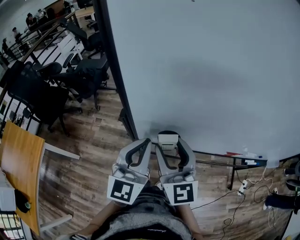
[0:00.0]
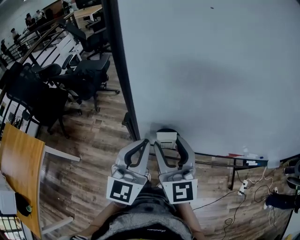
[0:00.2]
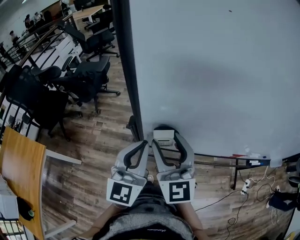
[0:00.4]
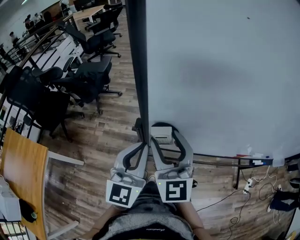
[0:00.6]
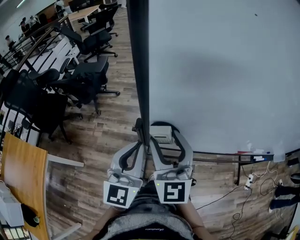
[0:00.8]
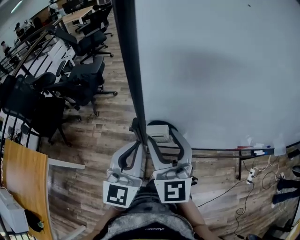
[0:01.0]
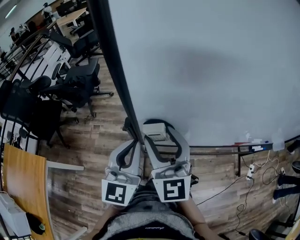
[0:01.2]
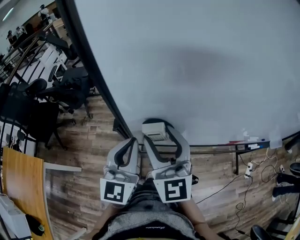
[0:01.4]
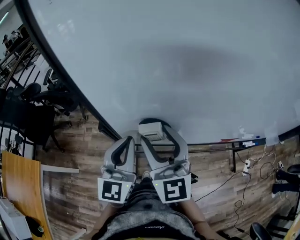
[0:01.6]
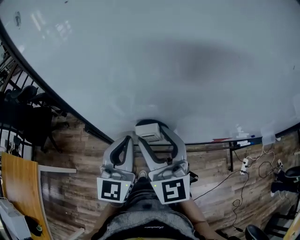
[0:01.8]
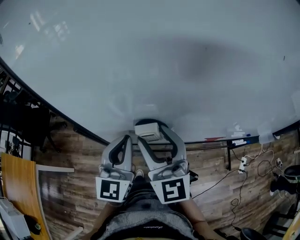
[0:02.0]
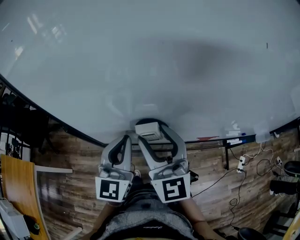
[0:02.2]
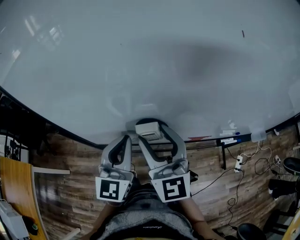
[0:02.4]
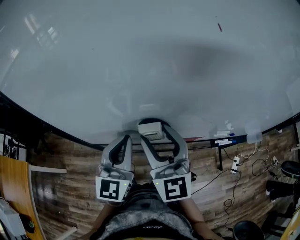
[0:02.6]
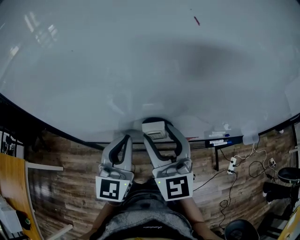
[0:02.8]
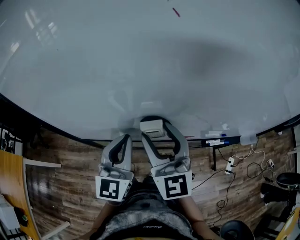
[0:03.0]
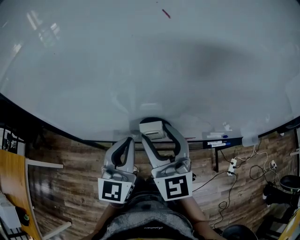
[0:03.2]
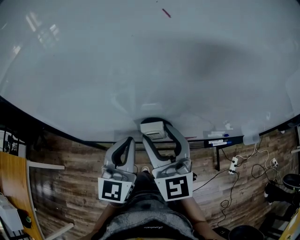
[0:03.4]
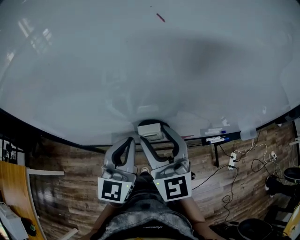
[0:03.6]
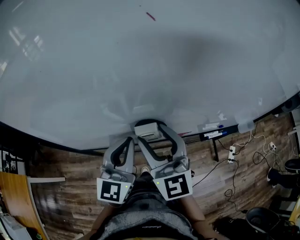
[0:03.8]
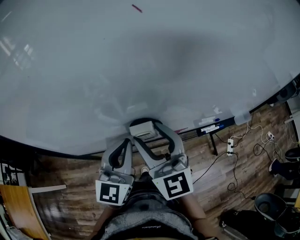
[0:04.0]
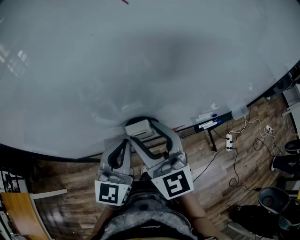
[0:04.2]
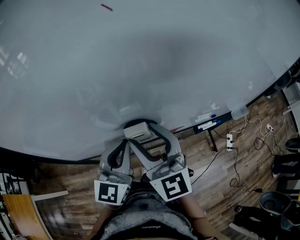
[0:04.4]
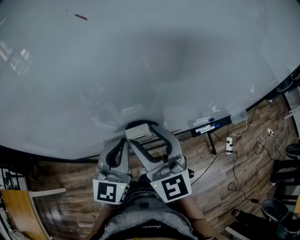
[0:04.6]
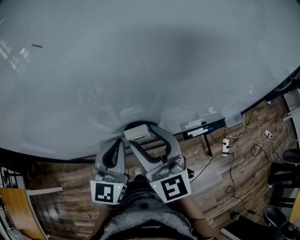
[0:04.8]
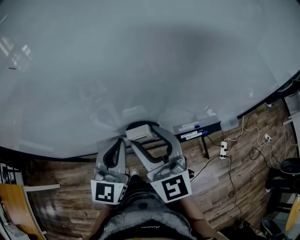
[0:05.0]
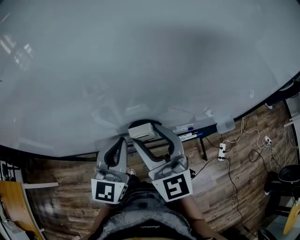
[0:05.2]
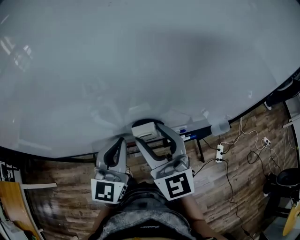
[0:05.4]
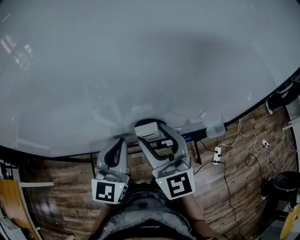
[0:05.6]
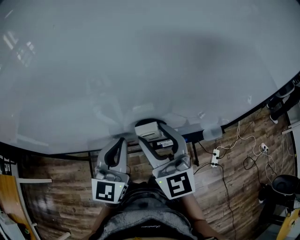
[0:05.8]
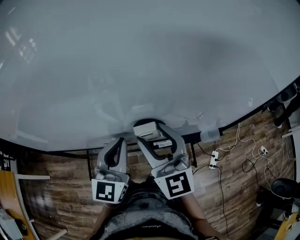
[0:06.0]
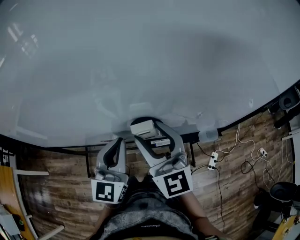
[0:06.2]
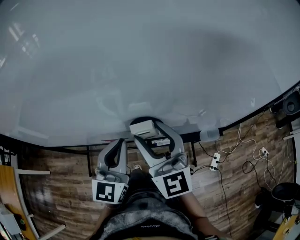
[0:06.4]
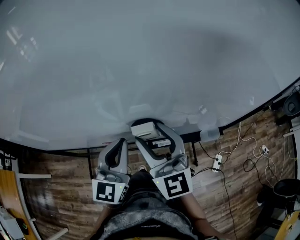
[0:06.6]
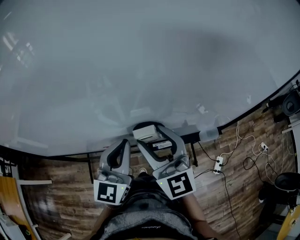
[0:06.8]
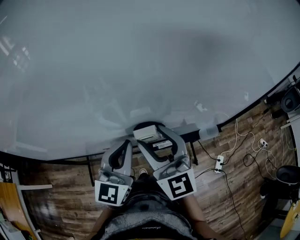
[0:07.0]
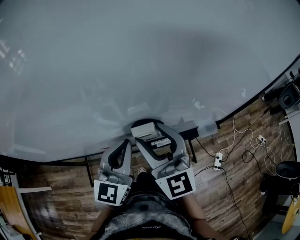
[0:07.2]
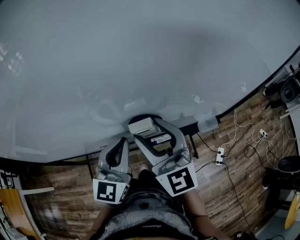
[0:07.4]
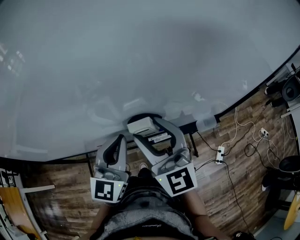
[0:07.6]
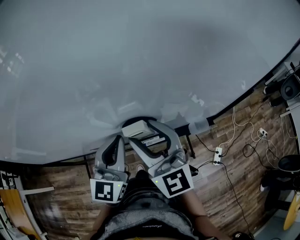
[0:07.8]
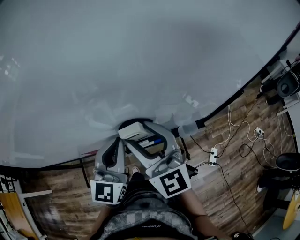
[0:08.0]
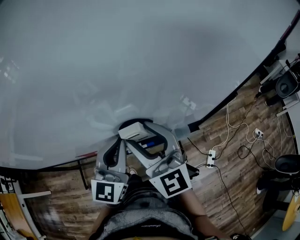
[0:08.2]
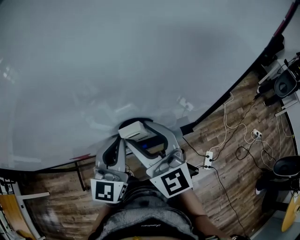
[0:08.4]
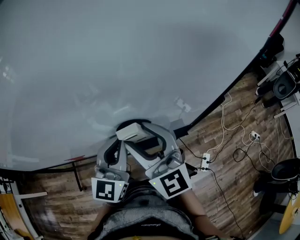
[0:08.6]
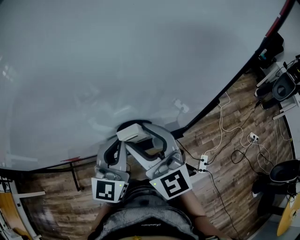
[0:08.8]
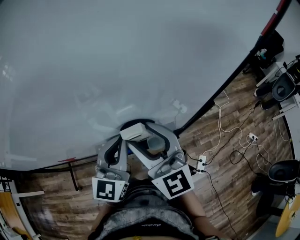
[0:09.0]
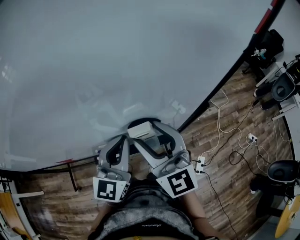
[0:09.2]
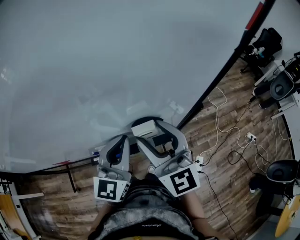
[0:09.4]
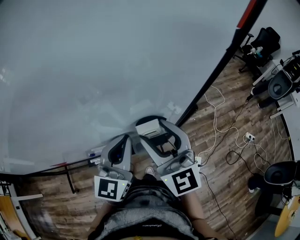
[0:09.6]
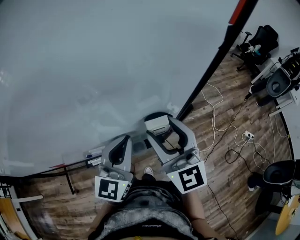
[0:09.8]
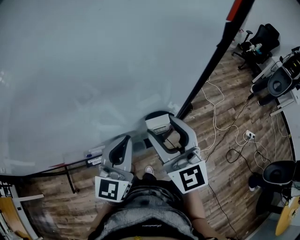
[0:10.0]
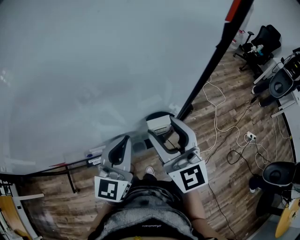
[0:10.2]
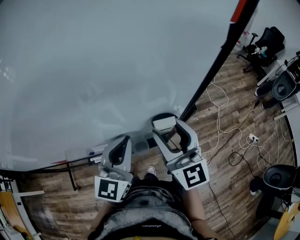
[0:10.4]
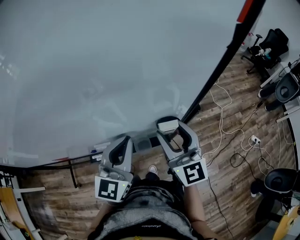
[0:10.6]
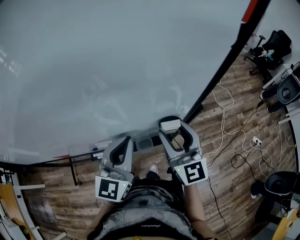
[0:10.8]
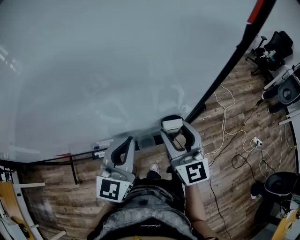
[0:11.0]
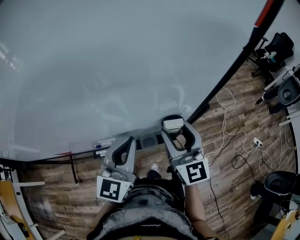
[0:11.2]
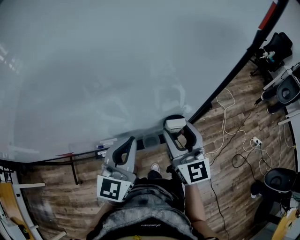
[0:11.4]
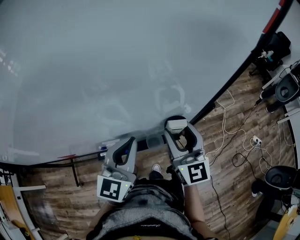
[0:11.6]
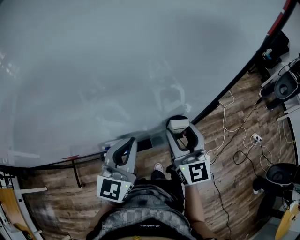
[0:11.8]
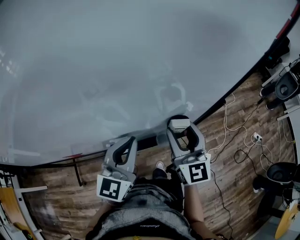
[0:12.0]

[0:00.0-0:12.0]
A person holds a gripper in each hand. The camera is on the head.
0:00.0 to 0:01.6: The left gripper moves some 10 cm to the left and comes back. The right gripper reaches approximately 10 cm to the left, then returns.
0:01.6 to 0:03.0: The grippers both shift to the right by roughly 30 cm.
0:03.0 to 0:04.4: There are only small adjustments of the grippers.
0:04.4 to 0:06.0: The two grippers go some 30 cm to the right.
0:06.0 to 0:07.6: The grippers make only small movements.
0:07.6 to 0:09.0: The grippers both shift to the right by some 30 cm.
0:09.0 to 0:10.4: The left gripper shifts about 10 cm to the right, while the right gripper heads to the right, covering roughly 15 cm.
0:10.4 to 0:12.0: The right gripper travels to the left by about 5 cm; the left gripper shifts approximately 10 cm to the left.

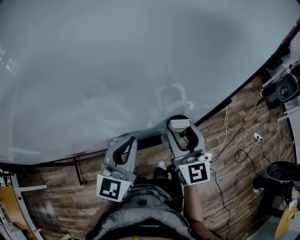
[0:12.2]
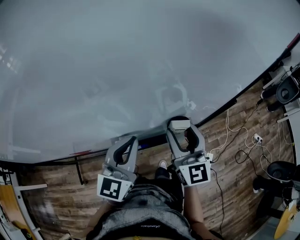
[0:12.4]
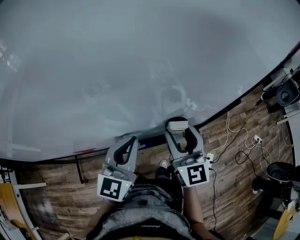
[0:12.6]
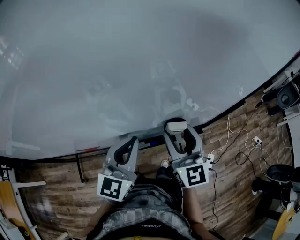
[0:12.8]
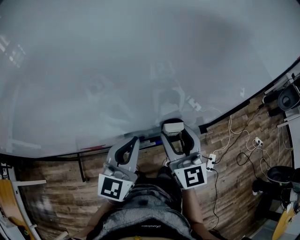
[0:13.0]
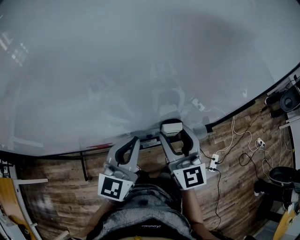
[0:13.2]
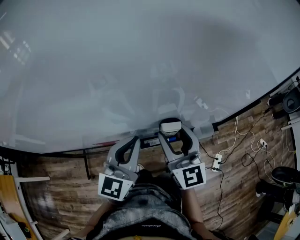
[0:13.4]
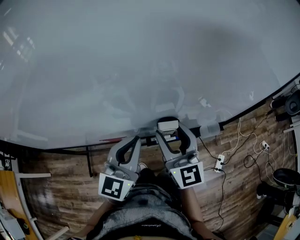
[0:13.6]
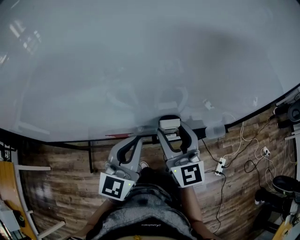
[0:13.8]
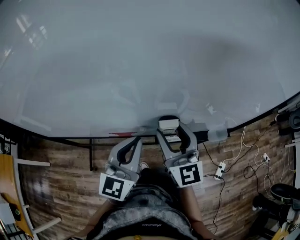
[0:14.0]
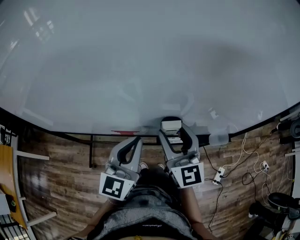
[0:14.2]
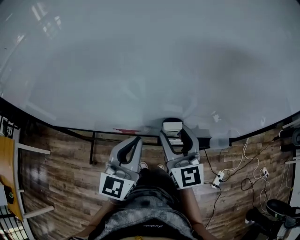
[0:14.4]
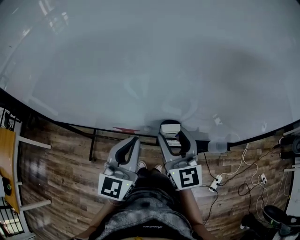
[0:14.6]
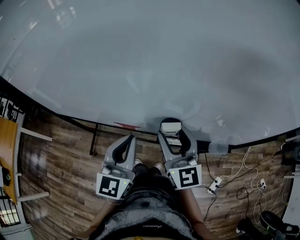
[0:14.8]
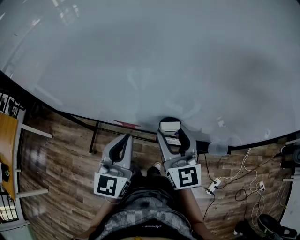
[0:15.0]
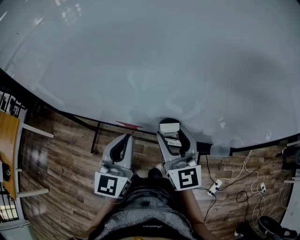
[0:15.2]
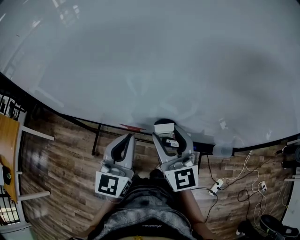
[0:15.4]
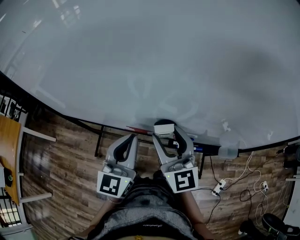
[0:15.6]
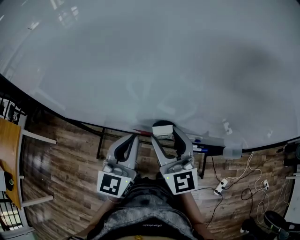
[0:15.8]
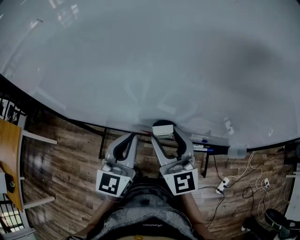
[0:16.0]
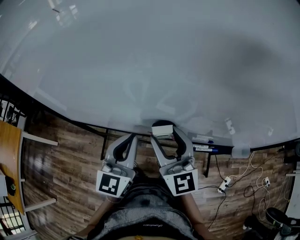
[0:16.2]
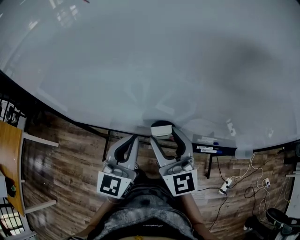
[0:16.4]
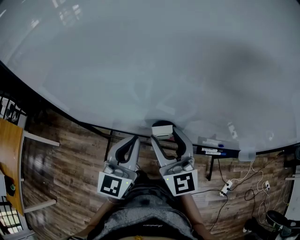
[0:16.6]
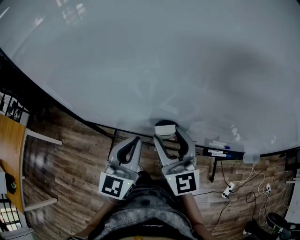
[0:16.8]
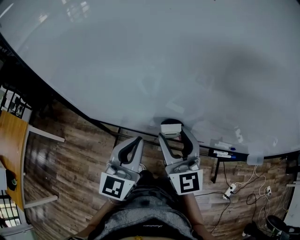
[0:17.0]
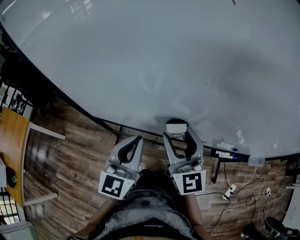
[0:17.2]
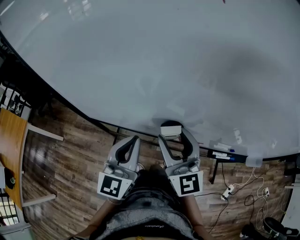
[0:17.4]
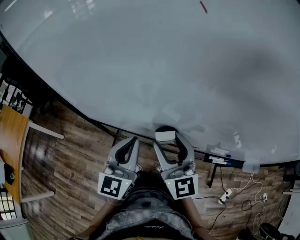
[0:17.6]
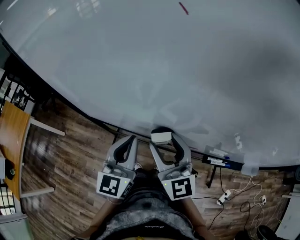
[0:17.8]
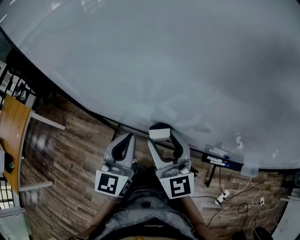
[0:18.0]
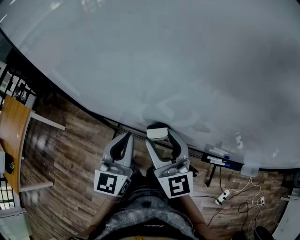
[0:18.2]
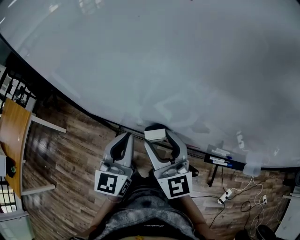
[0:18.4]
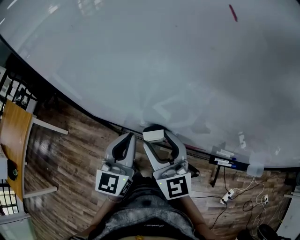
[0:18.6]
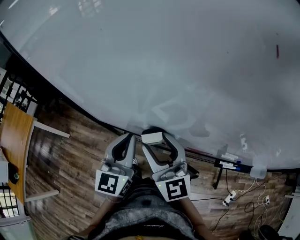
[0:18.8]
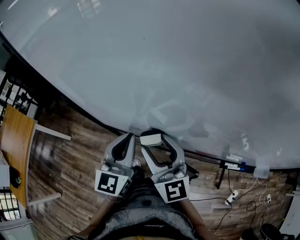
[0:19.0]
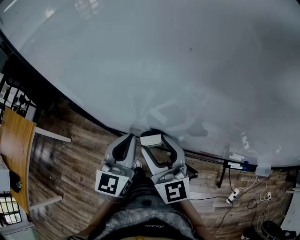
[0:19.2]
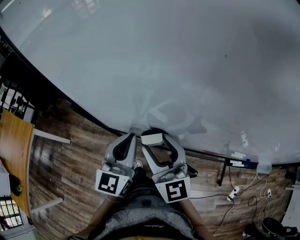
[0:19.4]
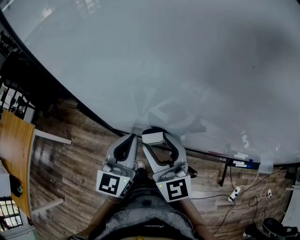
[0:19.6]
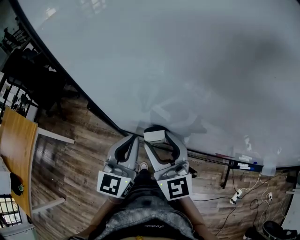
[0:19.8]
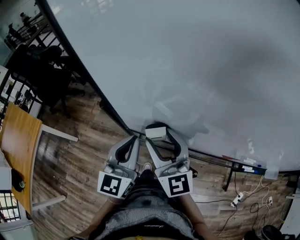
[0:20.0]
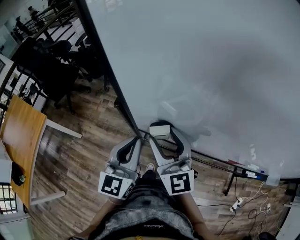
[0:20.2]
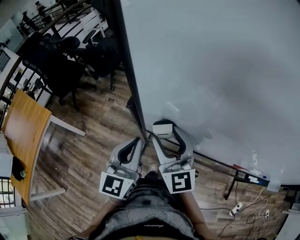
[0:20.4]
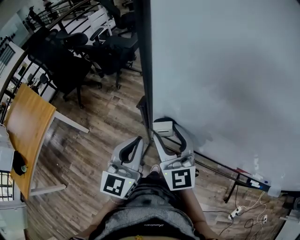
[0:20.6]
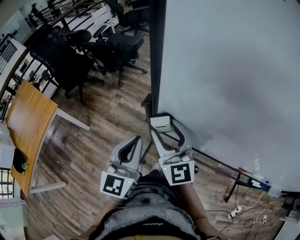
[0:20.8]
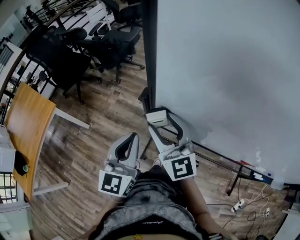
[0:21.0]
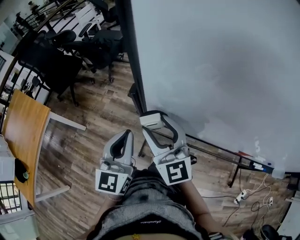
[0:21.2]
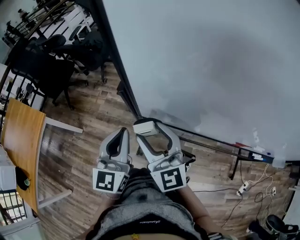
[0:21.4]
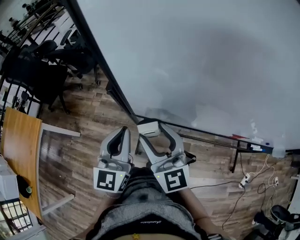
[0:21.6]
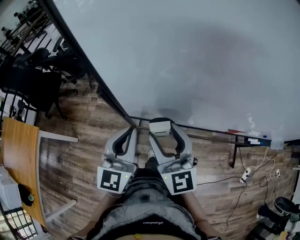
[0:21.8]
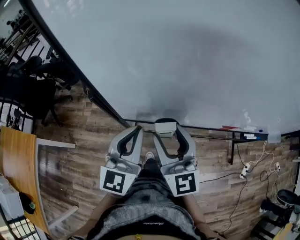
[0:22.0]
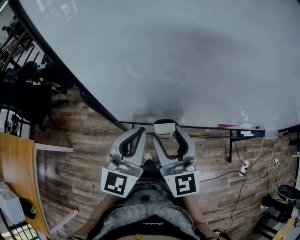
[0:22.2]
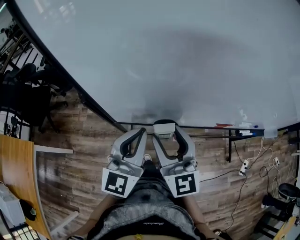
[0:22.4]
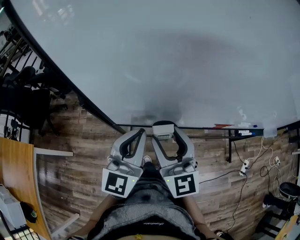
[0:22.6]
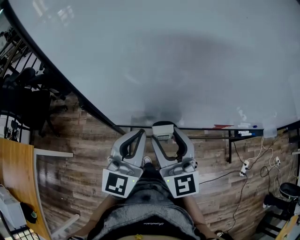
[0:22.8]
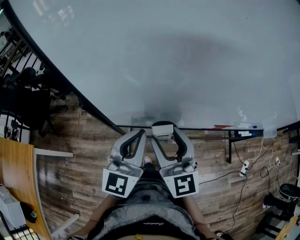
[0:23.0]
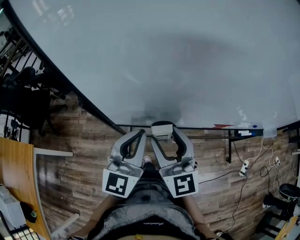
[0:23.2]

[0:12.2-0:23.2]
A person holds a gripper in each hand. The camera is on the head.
0:12.2 to 0:13.8: The two grippers go about 25 cm to the left.
0:13.8 to 0:15.4: Both grippers travel together to the left, about 5 cm. The left gripper swivels about 20 degrees.
0:15.4 to 0:17.0: The grippers both shift to the left by about 30 cm.
0:17.0 to 0:18.4: There are only small adjustments of the grippers.
0:18.4 to 0:20.0: Both grippers travel together to the left, approximately 25 cm.
0:20.0 to 0:21.6: Both grippers move to the left, about 10 cm.
0:21.6 to 0:23.2: Both grippers travel together to the right, roughly 15 cm. The left gripper swivels about 20 degrees.

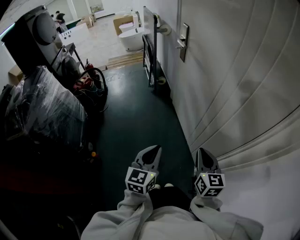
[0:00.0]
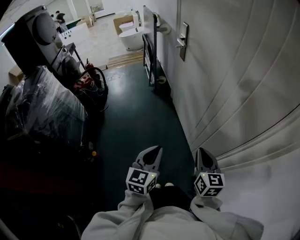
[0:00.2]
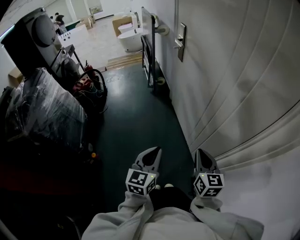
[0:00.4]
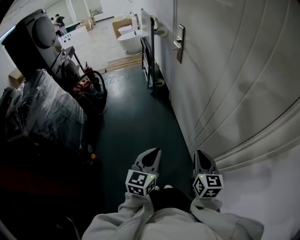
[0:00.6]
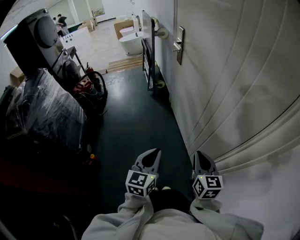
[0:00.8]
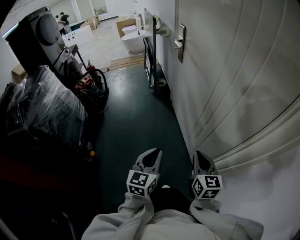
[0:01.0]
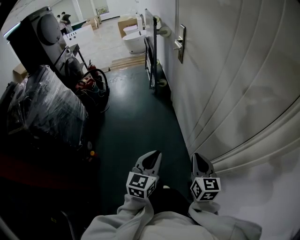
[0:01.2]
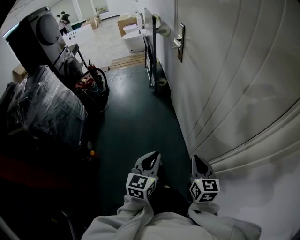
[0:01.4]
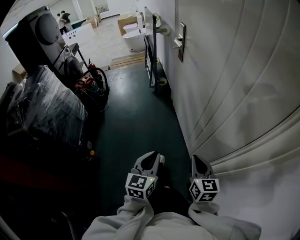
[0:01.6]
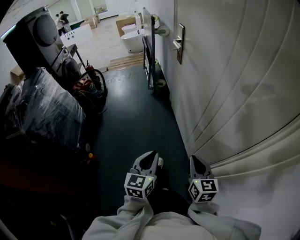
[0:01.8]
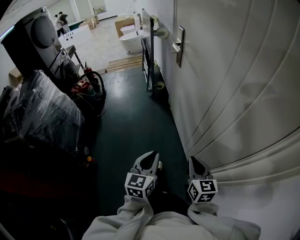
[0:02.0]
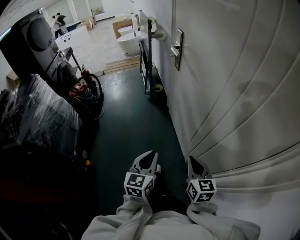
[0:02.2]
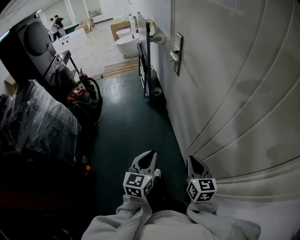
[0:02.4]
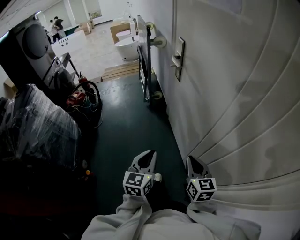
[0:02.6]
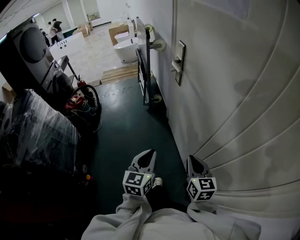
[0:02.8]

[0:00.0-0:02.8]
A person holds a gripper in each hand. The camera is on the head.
0:00.0 to 0:01.4: The right gripper ends up some 5 cm from where it was, while the left gripper travels to the right by some 5 cm.
0:01.4 to 0:02.8: The two grippers go roughly 20 cm forward.
